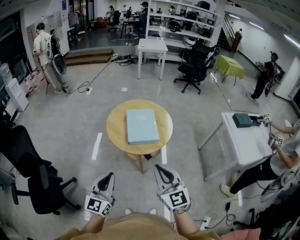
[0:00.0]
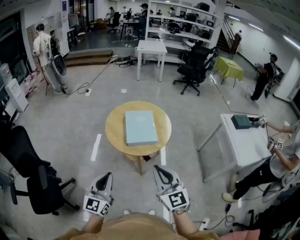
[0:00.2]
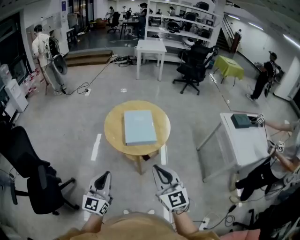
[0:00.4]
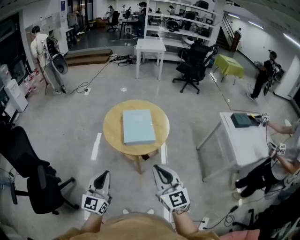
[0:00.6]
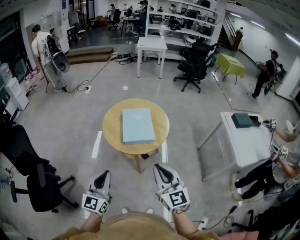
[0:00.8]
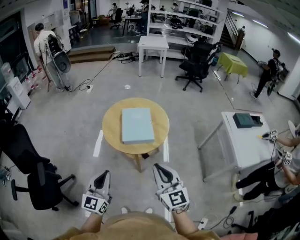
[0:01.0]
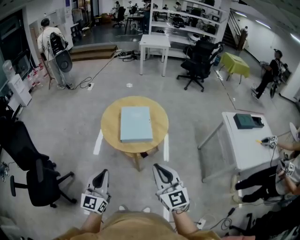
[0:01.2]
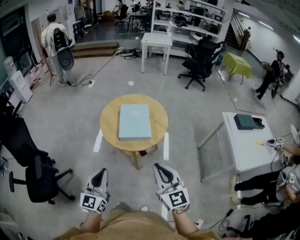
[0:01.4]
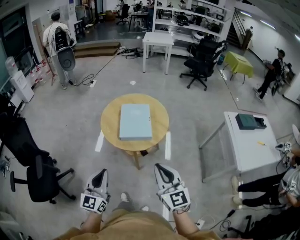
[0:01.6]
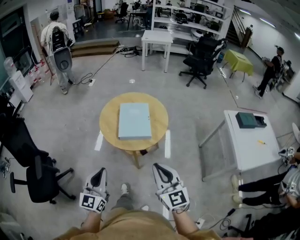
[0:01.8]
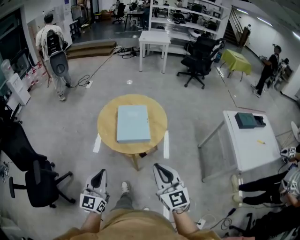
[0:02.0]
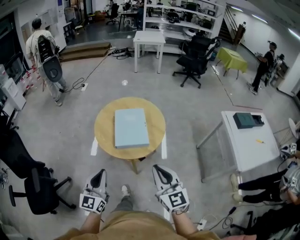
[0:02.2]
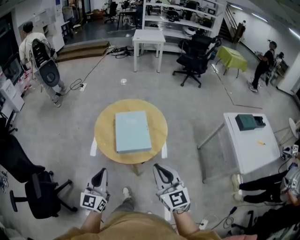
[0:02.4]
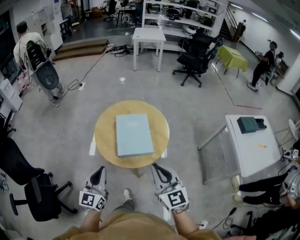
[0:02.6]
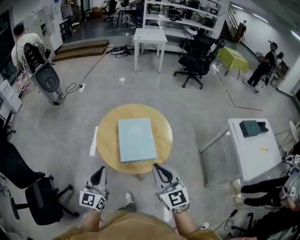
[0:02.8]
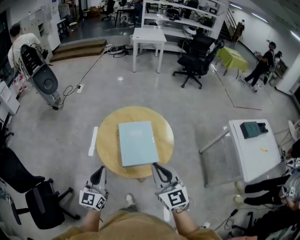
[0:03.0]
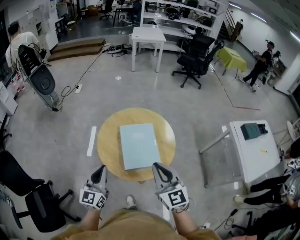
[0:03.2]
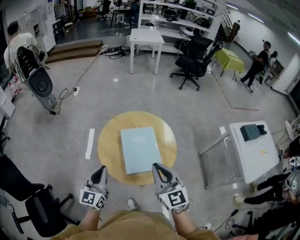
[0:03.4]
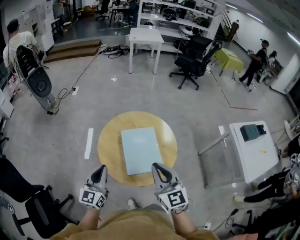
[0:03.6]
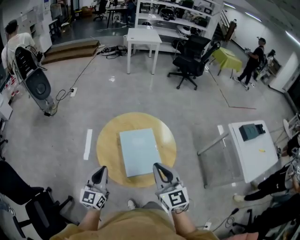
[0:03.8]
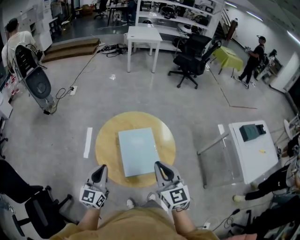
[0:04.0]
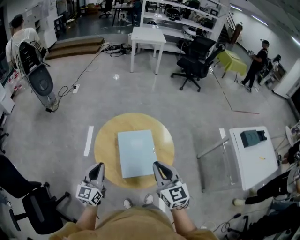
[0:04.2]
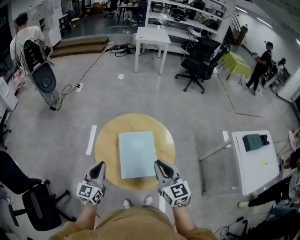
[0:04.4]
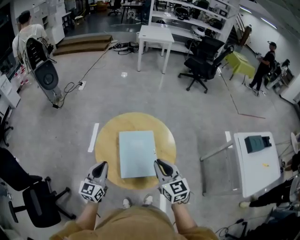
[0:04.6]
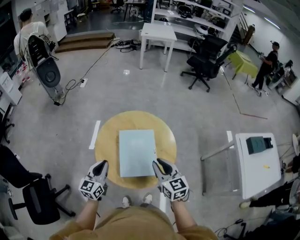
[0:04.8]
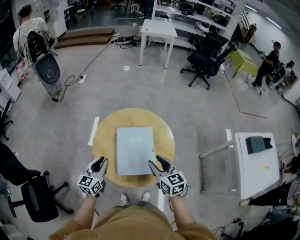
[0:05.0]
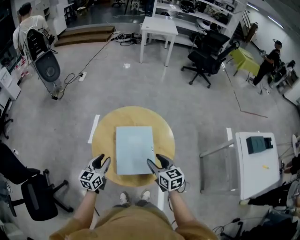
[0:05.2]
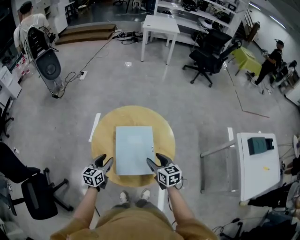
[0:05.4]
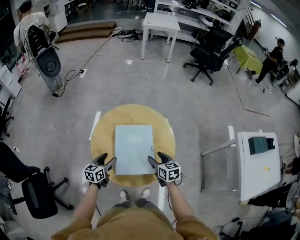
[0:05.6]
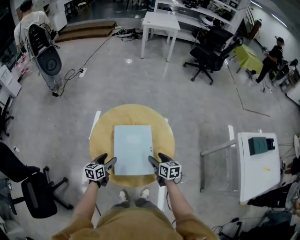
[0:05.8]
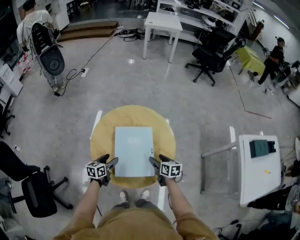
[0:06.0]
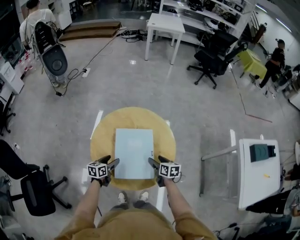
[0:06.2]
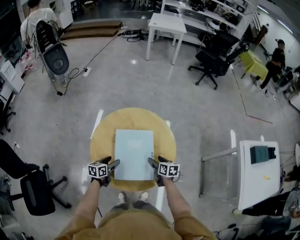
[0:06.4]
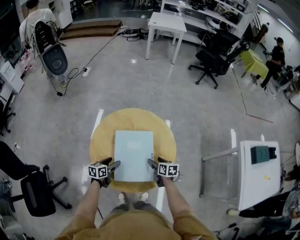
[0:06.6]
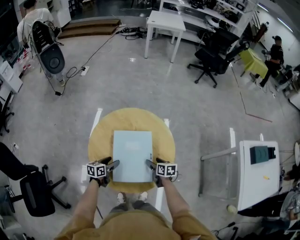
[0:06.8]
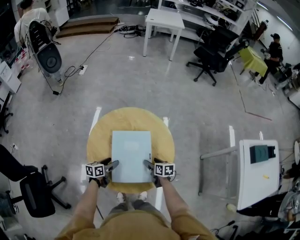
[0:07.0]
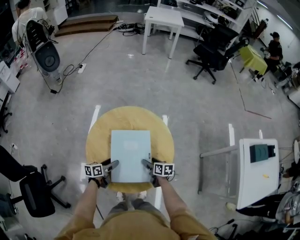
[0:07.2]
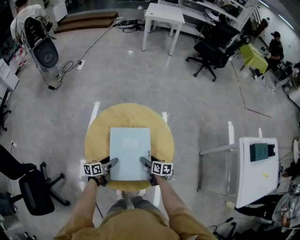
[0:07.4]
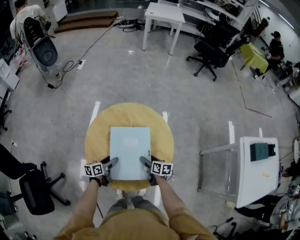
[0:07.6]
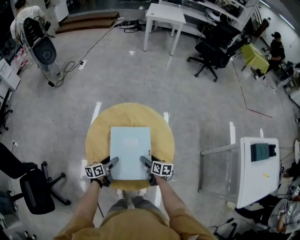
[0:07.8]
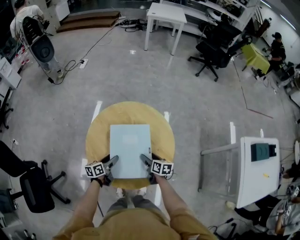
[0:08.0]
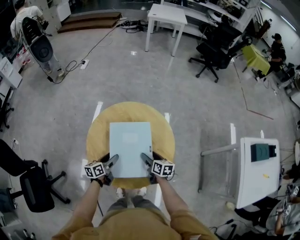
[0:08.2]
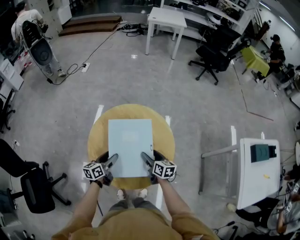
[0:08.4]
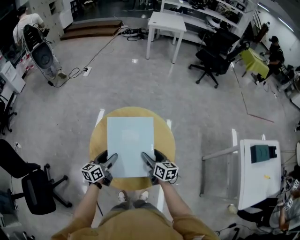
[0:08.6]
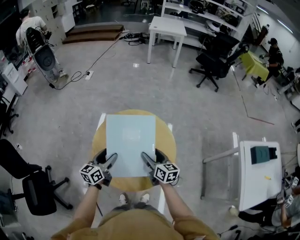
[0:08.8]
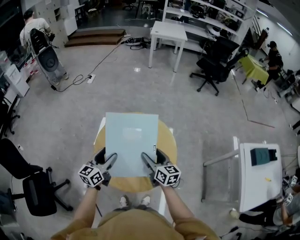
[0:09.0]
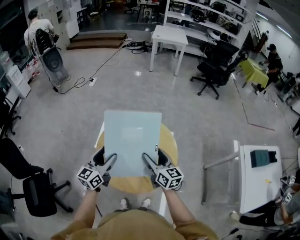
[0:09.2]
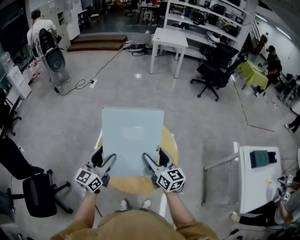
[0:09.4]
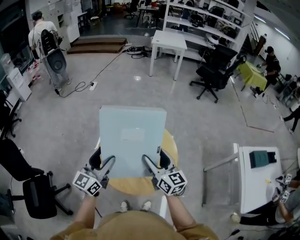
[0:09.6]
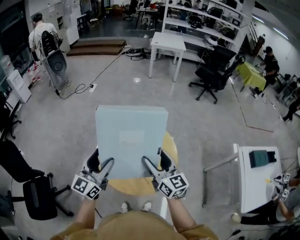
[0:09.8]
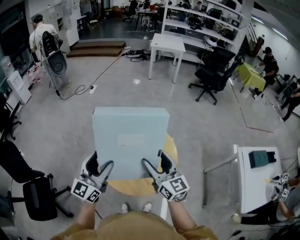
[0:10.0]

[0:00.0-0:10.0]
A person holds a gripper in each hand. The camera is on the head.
0:00.0 to 0:01.4: The grippers both shift to the right by approximately 10 cm.
0:01.4 to 0:02.8: The two grippers go roughly 25 cm forward.
0:02.8 to 0:04.2: The grippers both shift forward by approximately 15 cm.
0:04.2 to 0:05.8: The grippers both shift downward and forward by some 25 cm. The left gripper rotates roughly 30 degrees, and opens. Meanwhile the right gripper turns by roughly 40 degrees, and opens.
0:05.8 to 0:07.2: The left gripper moves downward, about 5 cm, and turns by about 20 degrees. The right gripper is displaced downward by some 10 cm.
0:07.2 to 0:08.6: Both grippers move upward, roughly 15 cm. The right gripper turns by some 20 degrees; the left gripper rotates roughly 20 degrees.
0:08.6 to 0:10.0: The two grippers go approximately 25 cm upward. The right gripper rotates some 40 degrees; the left gripper turns by approximately 40 degrees.

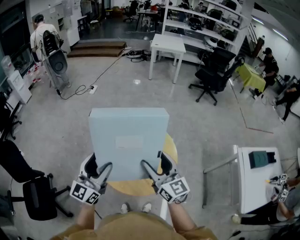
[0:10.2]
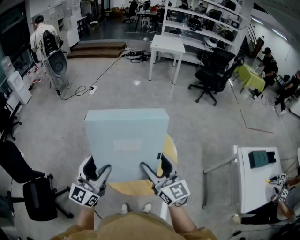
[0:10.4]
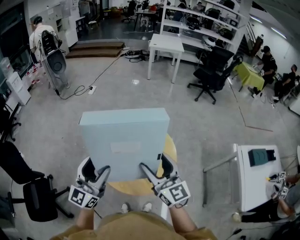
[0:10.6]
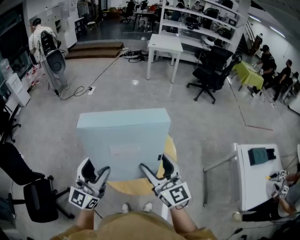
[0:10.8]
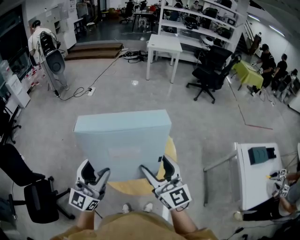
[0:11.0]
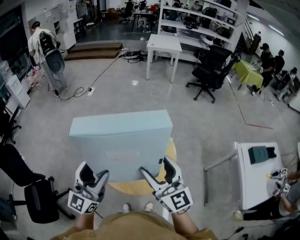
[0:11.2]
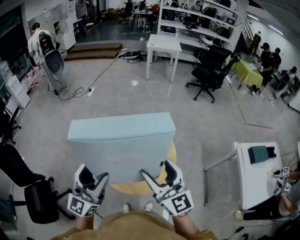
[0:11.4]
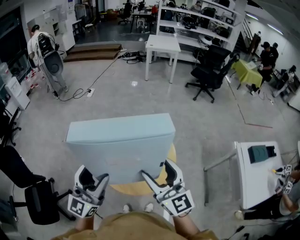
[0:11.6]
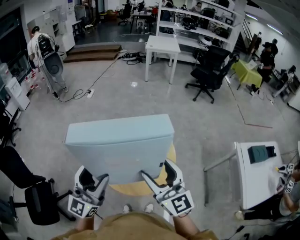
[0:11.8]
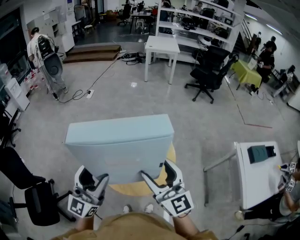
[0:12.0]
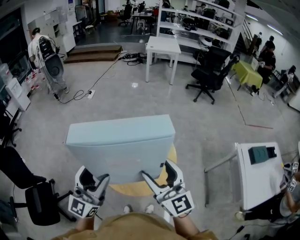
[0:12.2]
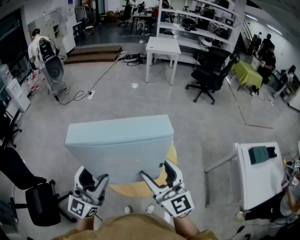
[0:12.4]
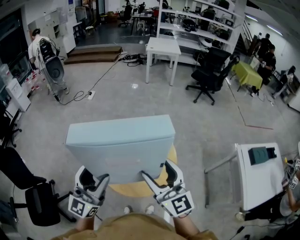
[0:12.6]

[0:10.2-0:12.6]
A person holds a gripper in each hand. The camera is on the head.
0:10.2 to 0:11.4: The right gripper travels upward and backward by about 10 cm, while the left gripper shifts roughly 10 cm backward and upward.
0:11.4 to 0:12.6: Both grippers stay about where they are.

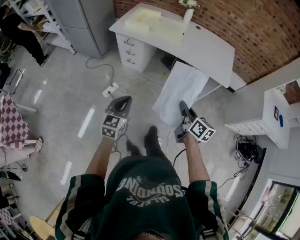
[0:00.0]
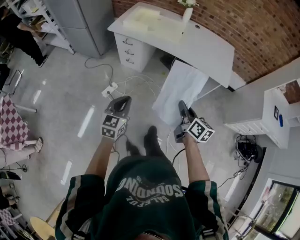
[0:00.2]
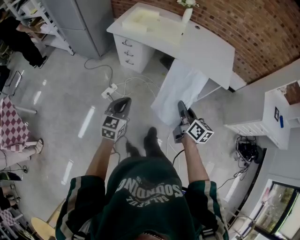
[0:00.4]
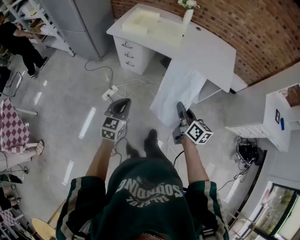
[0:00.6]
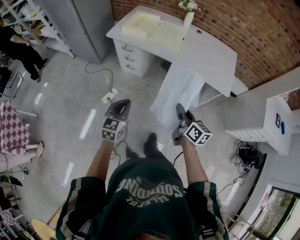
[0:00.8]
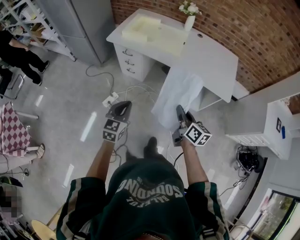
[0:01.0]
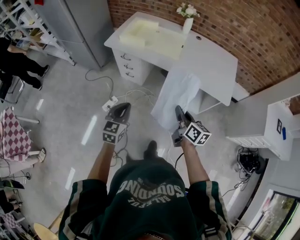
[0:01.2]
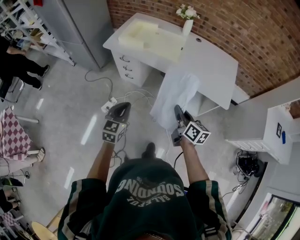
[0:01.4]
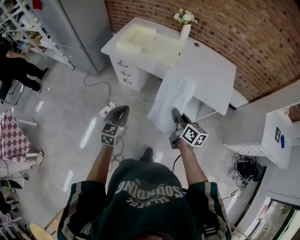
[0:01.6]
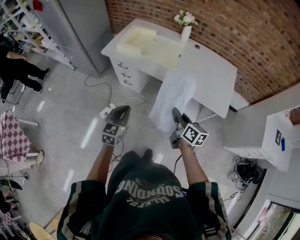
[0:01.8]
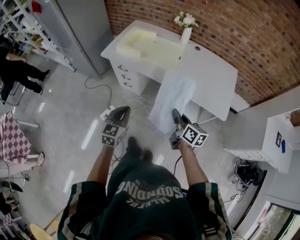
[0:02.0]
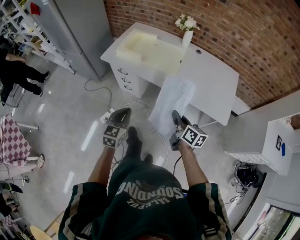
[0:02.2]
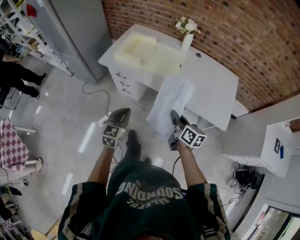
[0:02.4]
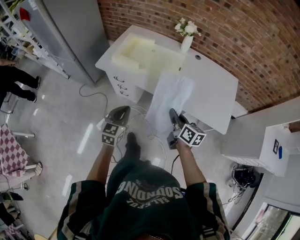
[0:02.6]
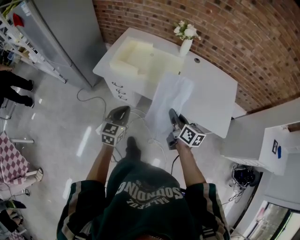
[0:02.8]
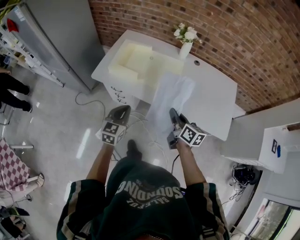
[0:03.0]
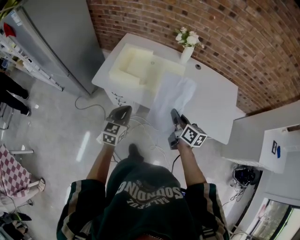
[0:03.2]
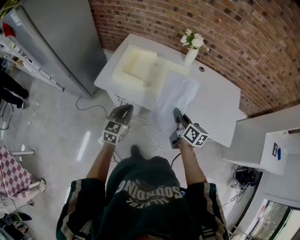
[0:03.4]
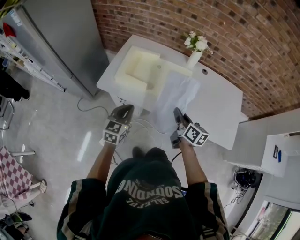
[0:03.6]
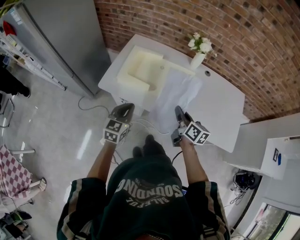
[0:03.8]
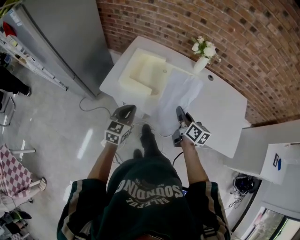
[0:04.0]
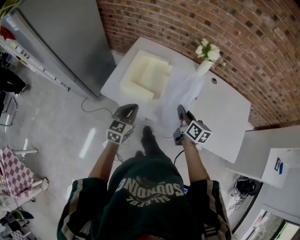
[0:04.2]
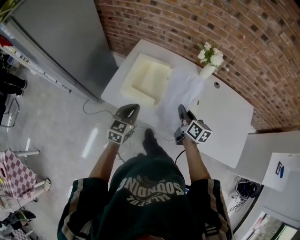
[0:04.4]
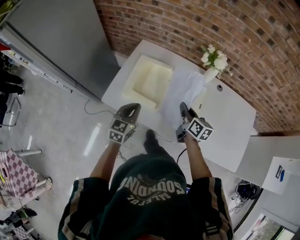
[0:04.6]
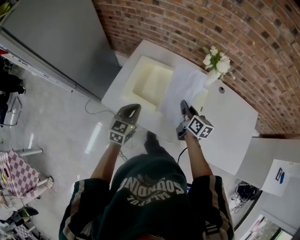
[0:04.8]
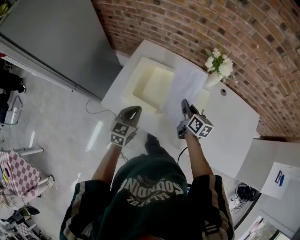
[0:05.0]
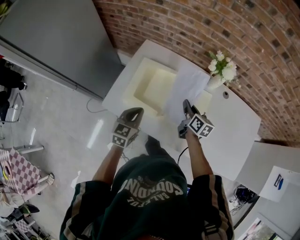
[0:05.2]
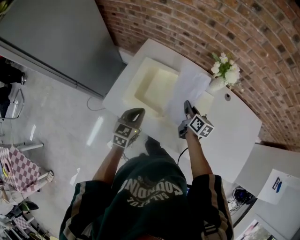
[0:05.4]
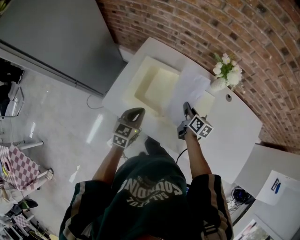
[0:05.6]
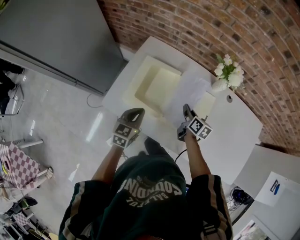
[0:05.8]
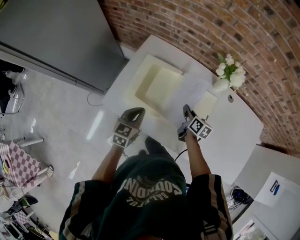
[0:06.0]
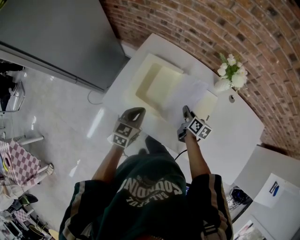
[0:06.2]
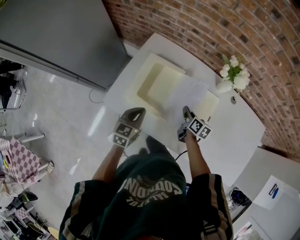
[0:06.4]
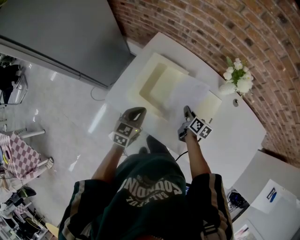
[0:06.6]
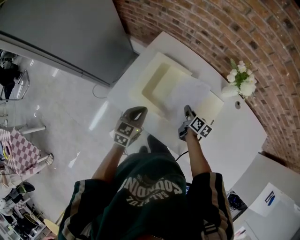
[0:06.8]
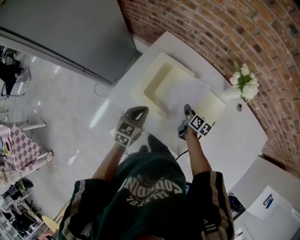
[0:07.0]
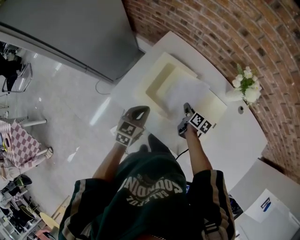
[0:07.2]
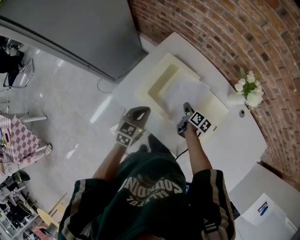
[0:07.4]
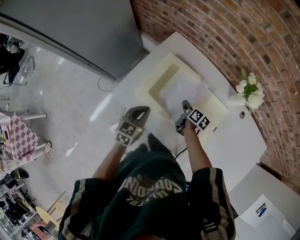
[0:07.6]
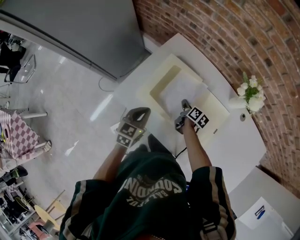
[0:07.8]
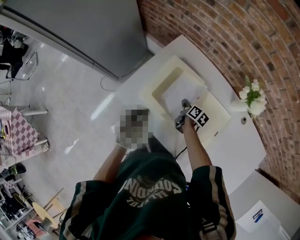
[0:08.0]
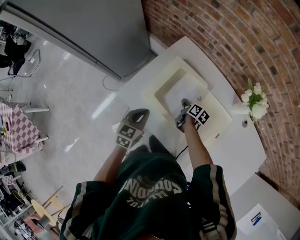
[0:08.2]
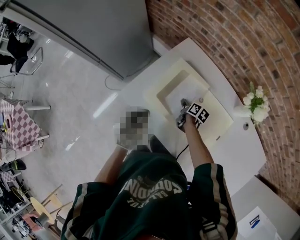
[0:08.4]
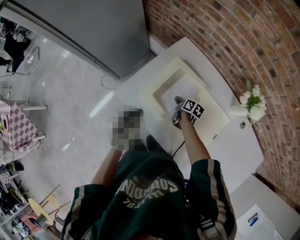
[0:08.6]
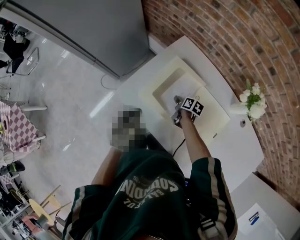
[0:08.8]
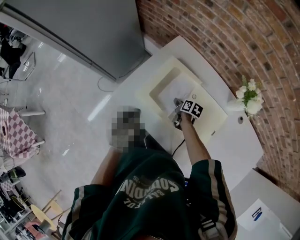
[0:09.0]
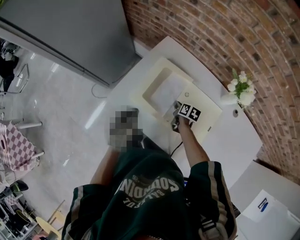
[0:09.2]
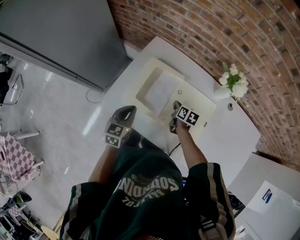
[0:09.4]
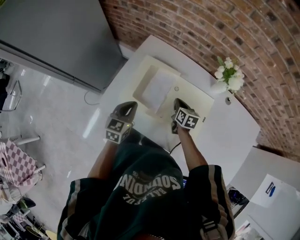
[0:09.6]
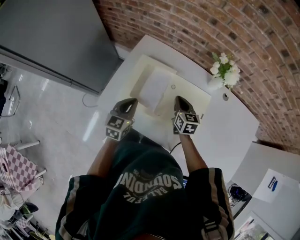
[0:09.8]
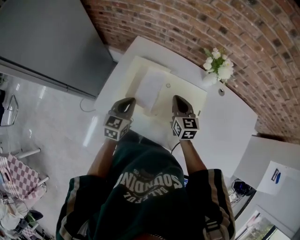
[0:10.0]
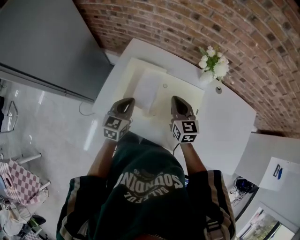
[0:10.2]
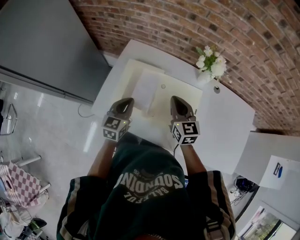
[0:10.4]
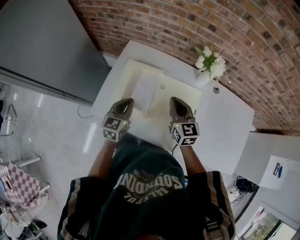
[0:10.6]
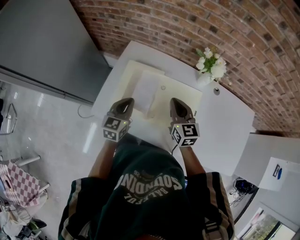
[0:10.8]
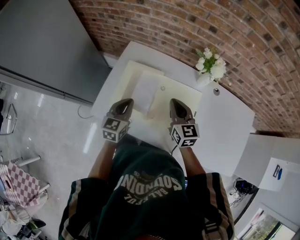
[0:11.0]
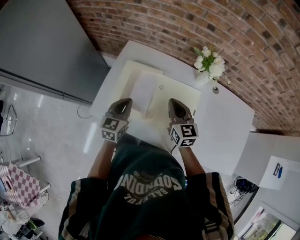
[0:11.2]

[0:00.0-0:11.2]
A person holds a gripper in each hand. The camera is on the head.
0:00.0 to 0:01.6: Both grippers move forward, about 20 cm.
0:01.6 to 0:03.2: Both grippers travel together forward, about 30 cm.
0:03.2 to 0:04.8: Both grippers travel together forward, roughly 25 cm.
0:04.8 to 0:06.4: The left gripper moves downward, approximately 5 cm. Meanwhile the right gripper shifts approximately 15 cm downward.
0:06.4 to 0:08.0: The right gripper travels to the left, forward and downward by roughly 15 cm.
0:08.0 to 0:09.6: The right gripper is displaced upward by approximately 5 cm, rotates approximately 30 degrees, and opens, then closes again.
0:09.6 to 0:11.2: The right gripper moves upward, some 15 cm, and changes its angle by roughly 30 degrees, while the left gripper moves some 5 cm.
